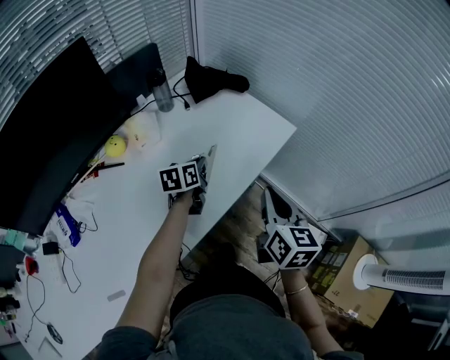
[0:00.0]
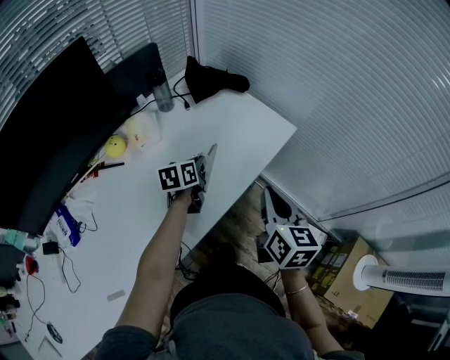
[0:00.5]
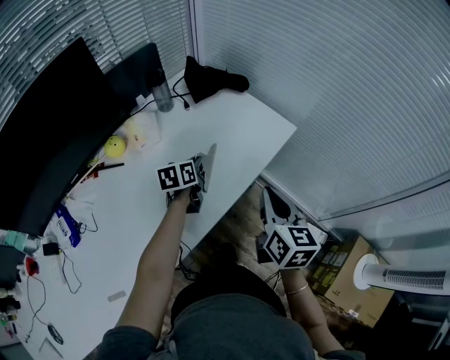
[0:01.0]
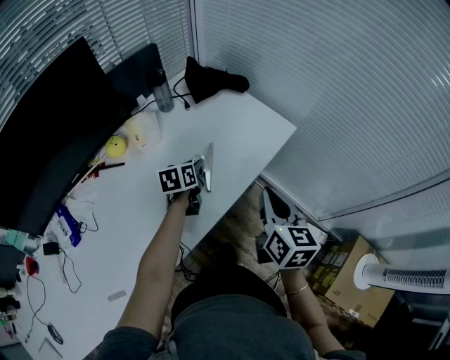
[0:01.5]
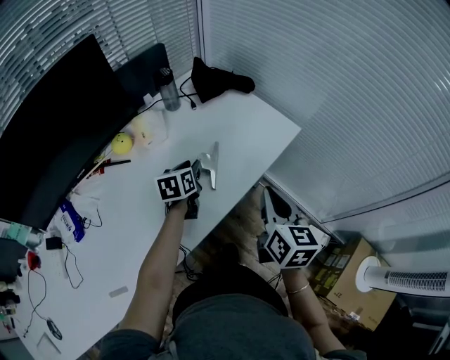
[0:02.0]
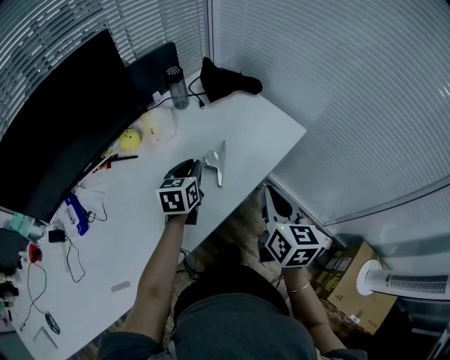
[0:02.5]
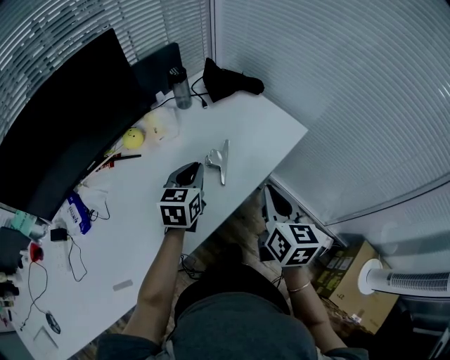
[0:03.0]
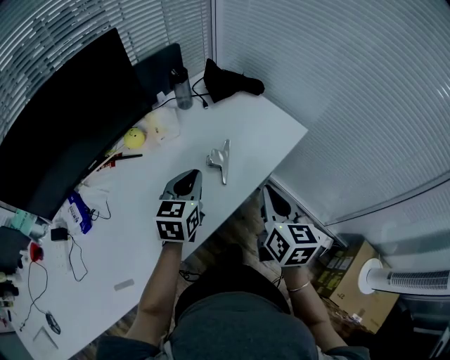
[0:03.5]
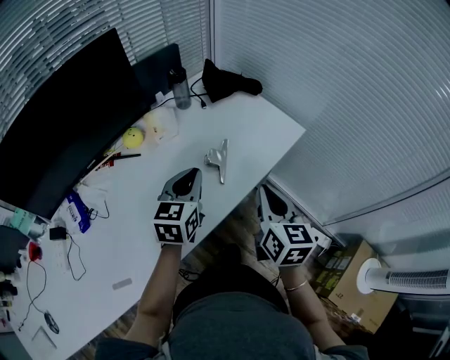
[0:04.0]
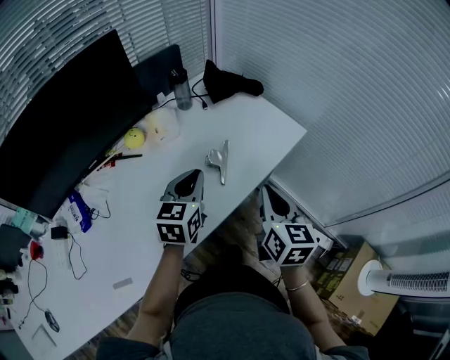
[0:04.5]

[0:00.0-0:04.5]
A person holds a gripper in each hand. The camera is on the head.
0:00.0 to 0:02.0: The left gripper shifts by some 5 cm, and opens.
0:02.0 to 0:04.5: The left gripper heads upward and backward, covering some 15 cm, swivels approximately 20 degrees, and closes.

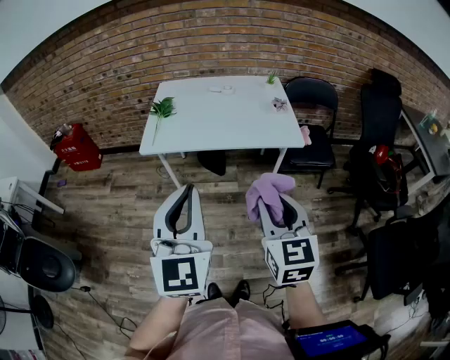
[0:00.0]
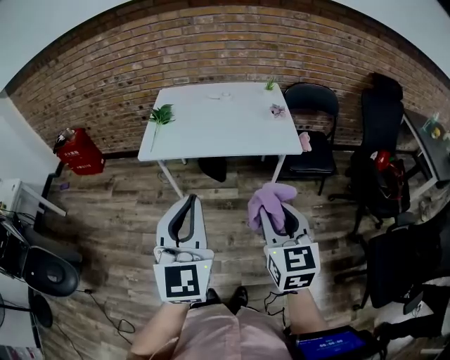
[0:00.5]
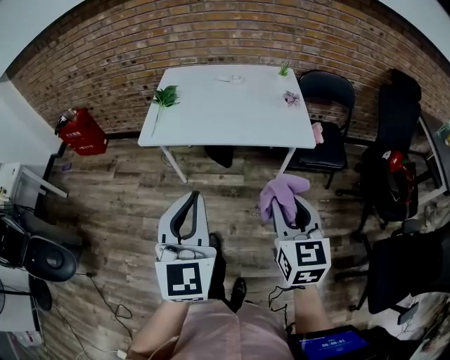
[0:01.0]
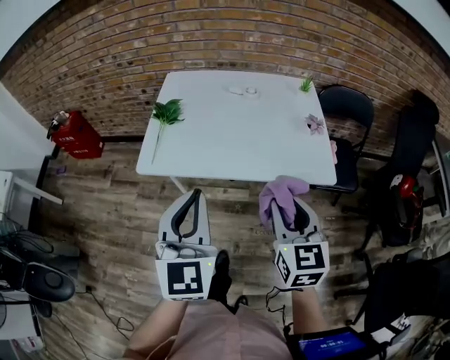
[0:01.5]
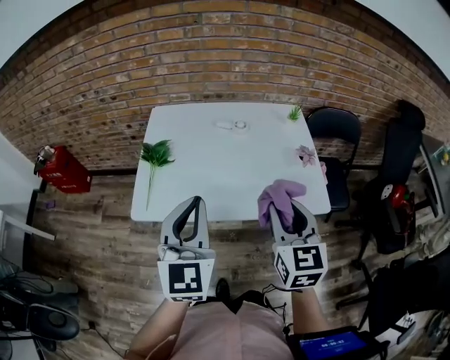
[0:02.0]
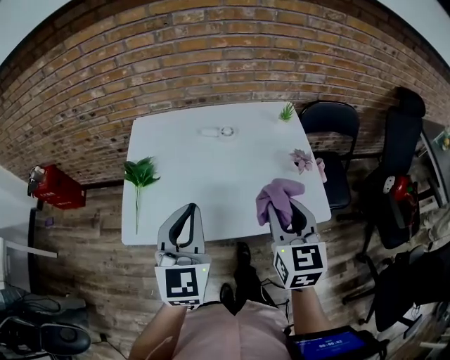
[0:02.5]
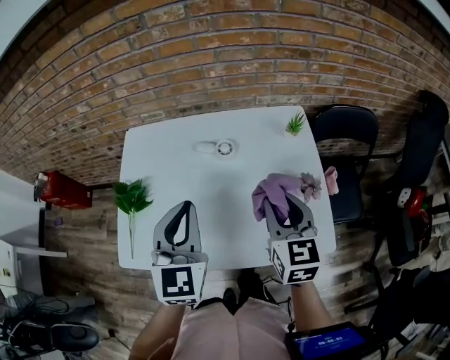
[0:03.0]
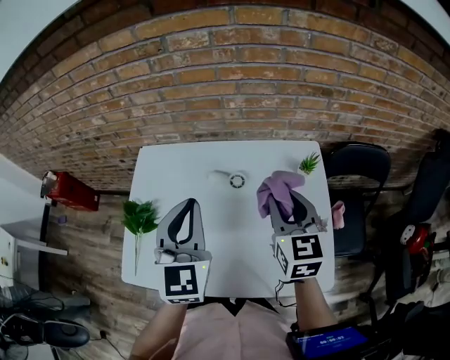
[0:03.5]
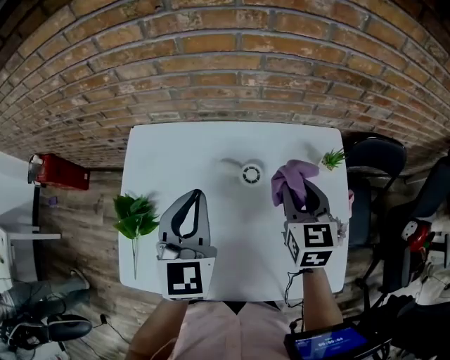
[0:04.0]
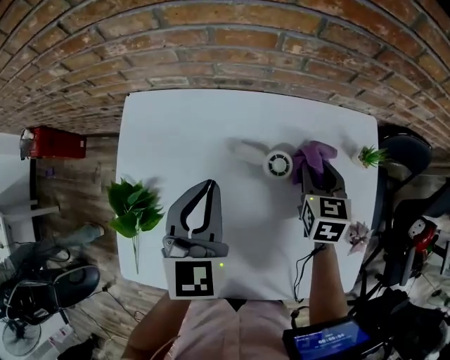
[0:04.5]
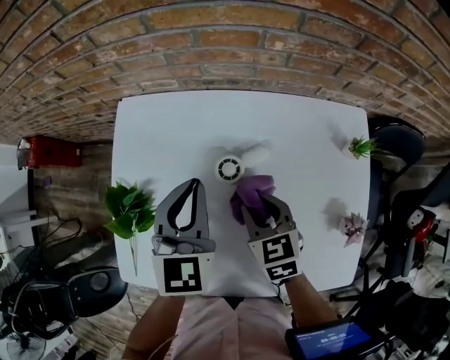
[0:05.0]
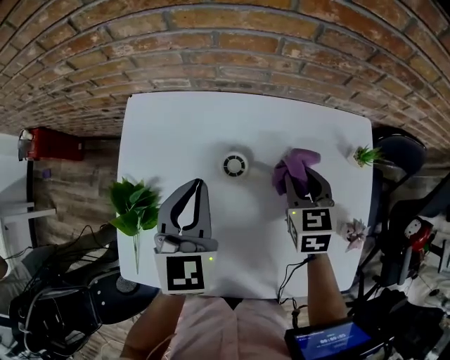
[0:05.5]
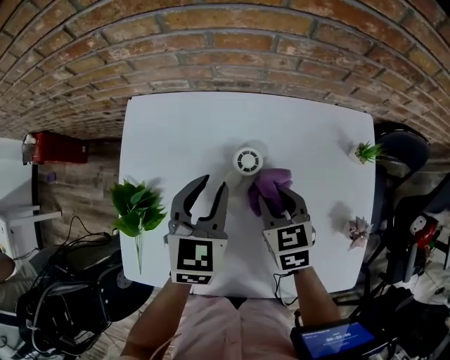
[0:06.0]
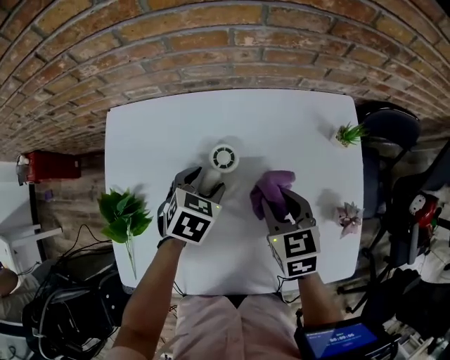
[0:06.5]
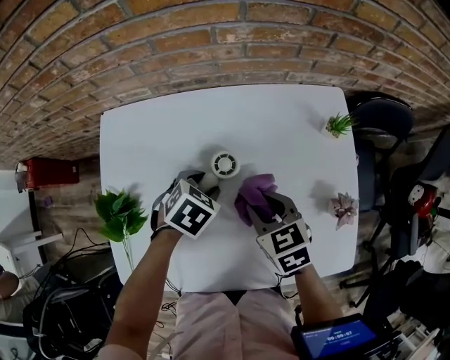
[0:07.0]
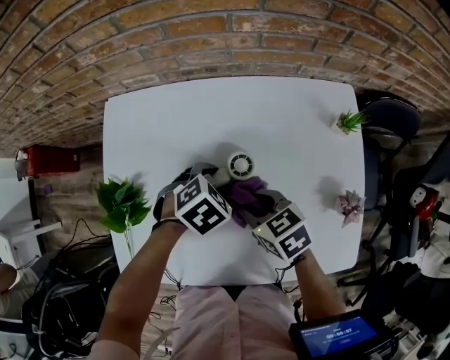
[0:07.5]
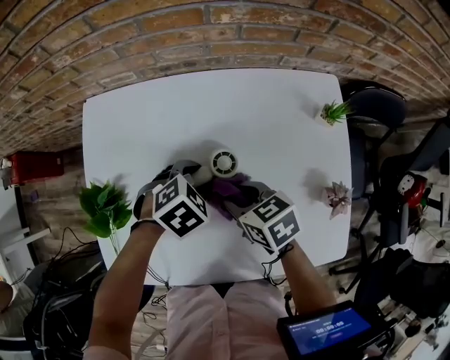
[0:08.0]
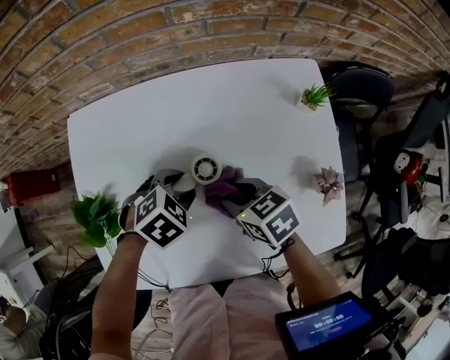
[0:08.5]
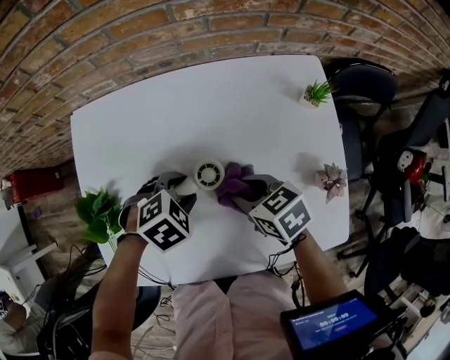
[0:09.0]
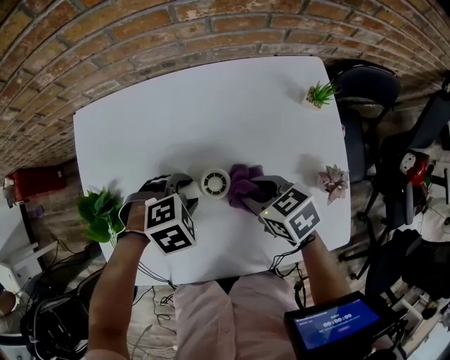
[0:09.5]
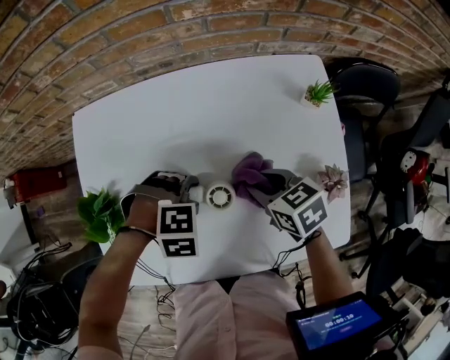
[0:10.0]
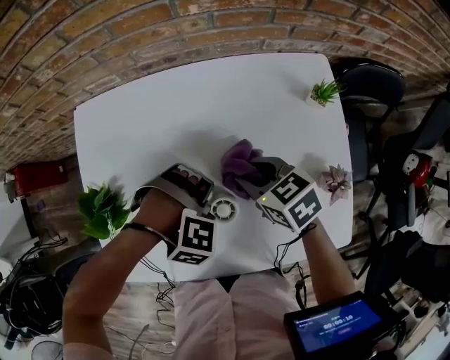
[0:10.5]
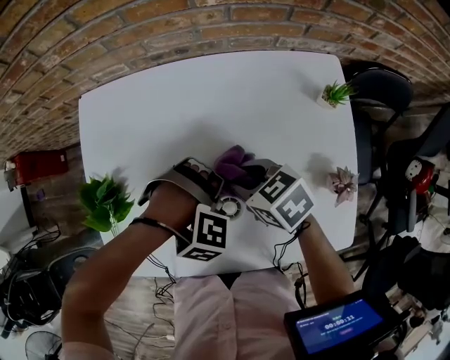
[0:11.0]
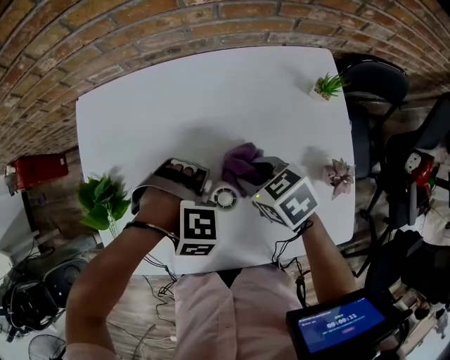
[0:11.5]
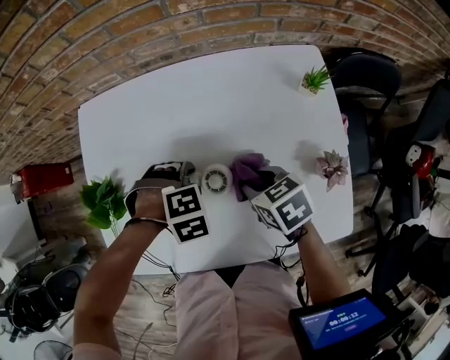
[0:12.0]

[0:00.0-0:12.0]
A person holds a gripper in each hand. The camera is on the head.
0:00.0 to 0:02.0: The two grippers go approximately 30 cm forward.
0:02.0 to 0:04.0: The two grippers go about 35 cm forward.
0:04.0 to 0:06.0: The right gripper swings left and right, some 15 cm each way, with 2 reversals, and turns by some 20 degrees; the left gripper travels downward by some 15 cm, and changes its angle by approximately 20 degrees.
0:06.0 to 0:08.0: The left gripper travels downward and to the right by about 15 cm, and tips its fingers downward by some 30 degrees; the right gripper heads backward, covering about 5 cm, and rotates some 30 degrees.
0:08.0 to 0:10.0: The left gripper moves about 5 cm, and twists roughly 40 degrees clockwise, seen from behind. Meanwhile the right gripper ends up some 10 cm from where it was.

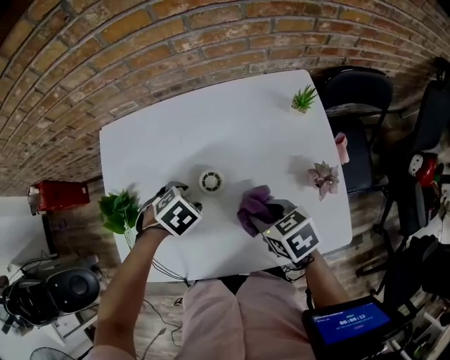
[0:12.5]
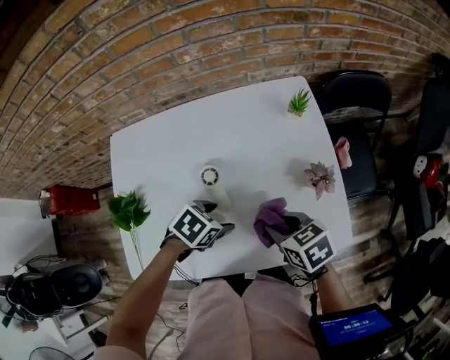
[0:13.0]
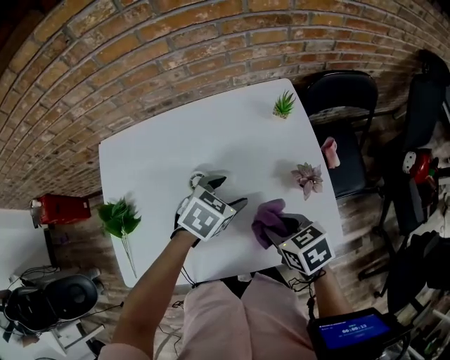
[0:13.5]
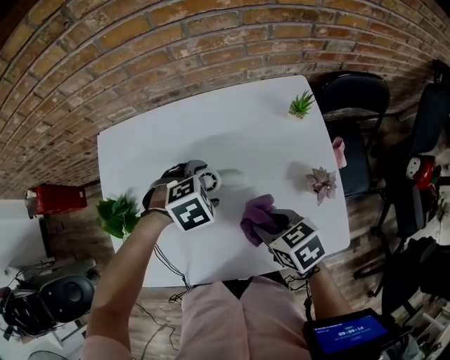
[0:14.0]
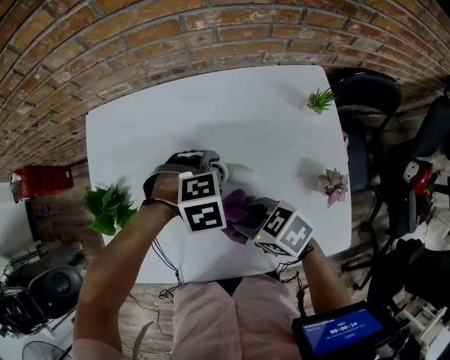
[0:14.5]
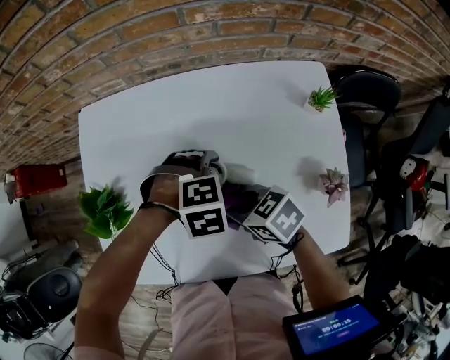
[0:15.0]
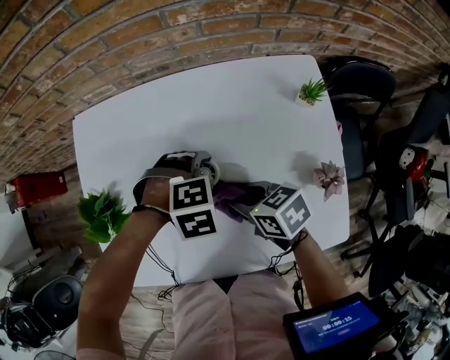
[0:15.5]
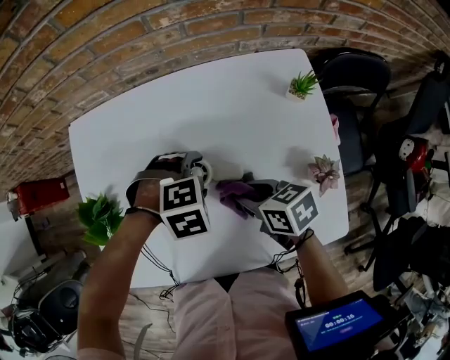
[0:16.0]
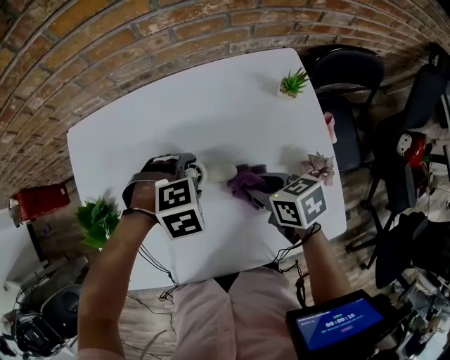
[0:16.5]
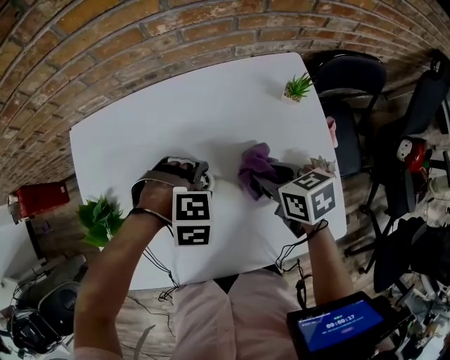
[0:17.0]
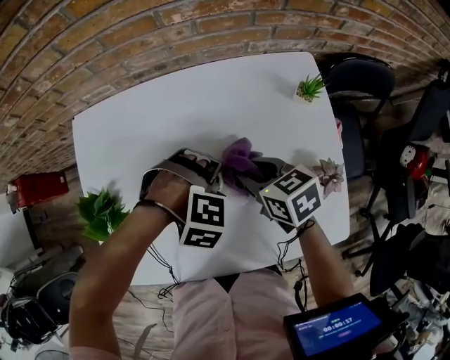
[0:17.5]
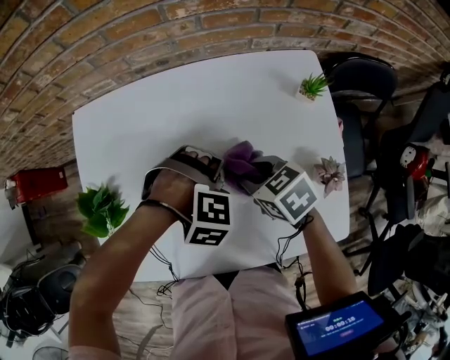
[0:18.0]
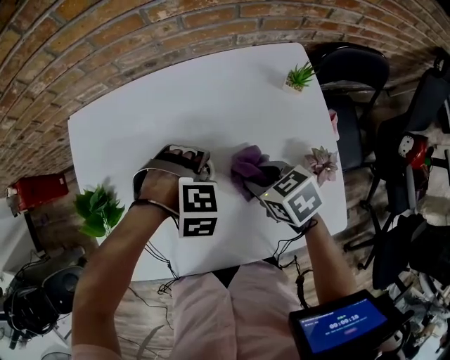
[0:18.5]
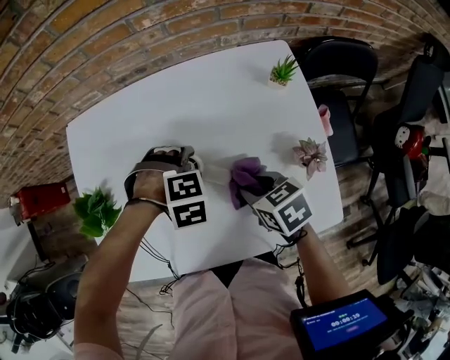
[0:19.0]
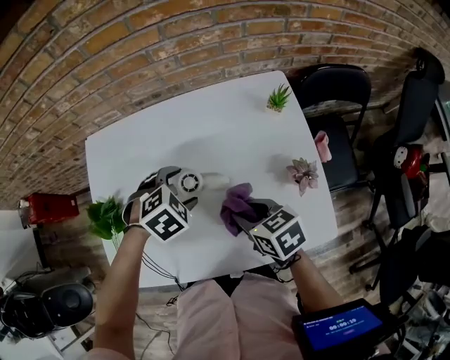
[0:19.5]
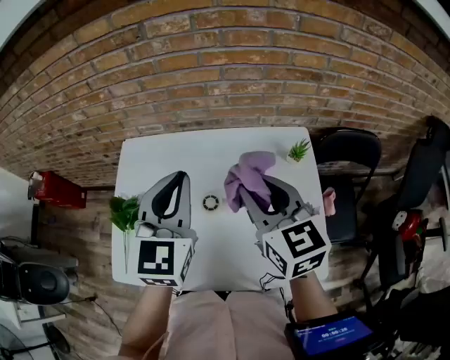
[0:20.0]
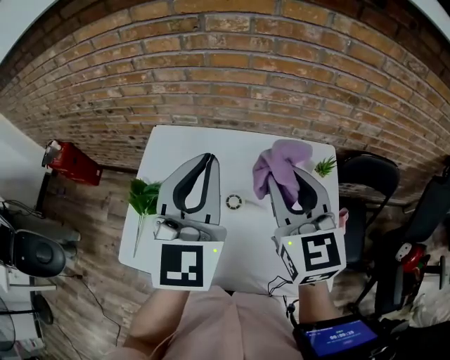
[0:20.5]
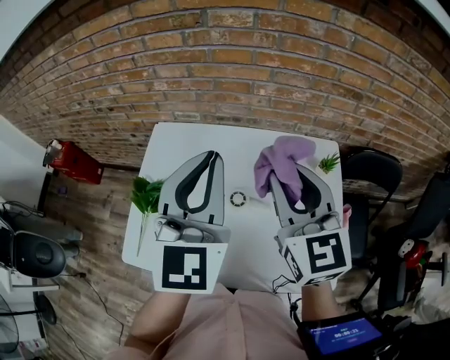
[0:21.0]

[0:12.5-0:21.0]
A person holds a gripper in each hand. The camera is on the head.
0:12.5 to 0:14.5: The left gripper swivels approximately 30 degrees. The right gripper changes place by some 5 cm, and turns by about 20 degrees.
0:14.5 to 0:16.5: The right gripper shifts by approximately 10 cm, and changes its angle by some 30 degrees.
0:19.0 to 0:21.0: Both grippers move upward, some 35 cm. The right gripper angles its fingers upward, by about 40 degrees. Meanwhile the left gripper points its fingers roughly 90 degrees further upward, and closes up.

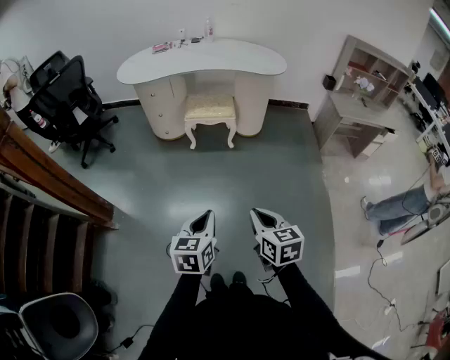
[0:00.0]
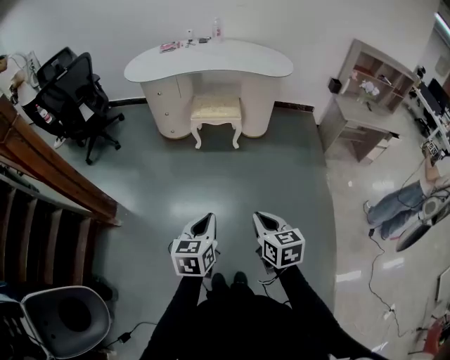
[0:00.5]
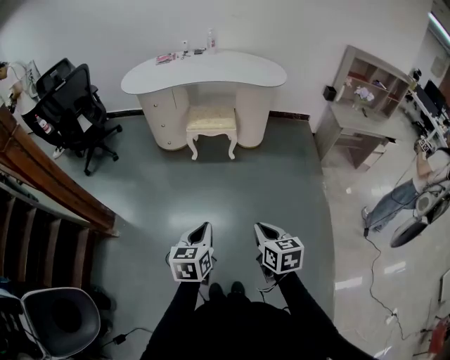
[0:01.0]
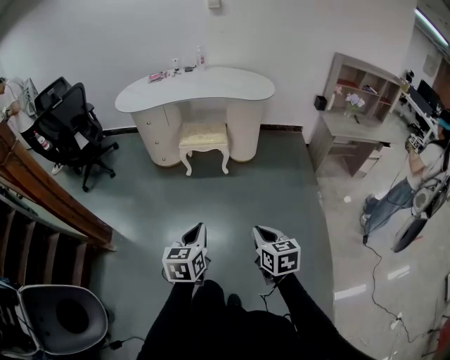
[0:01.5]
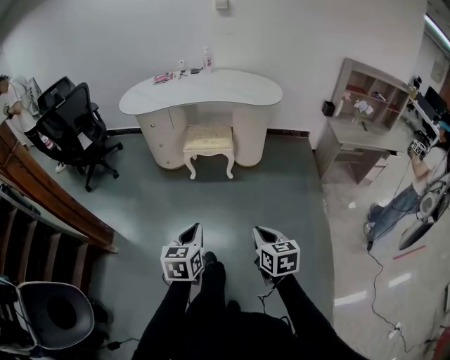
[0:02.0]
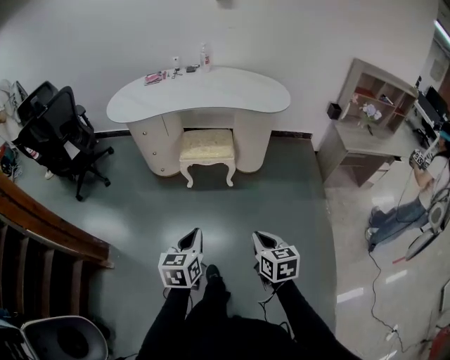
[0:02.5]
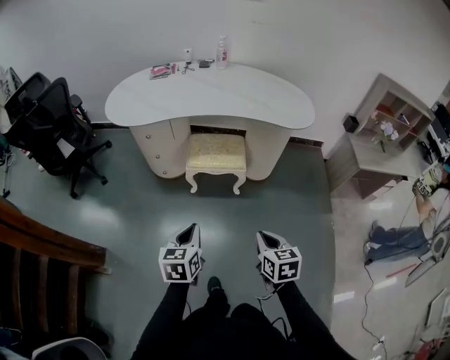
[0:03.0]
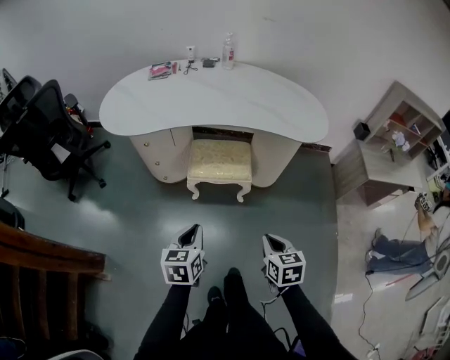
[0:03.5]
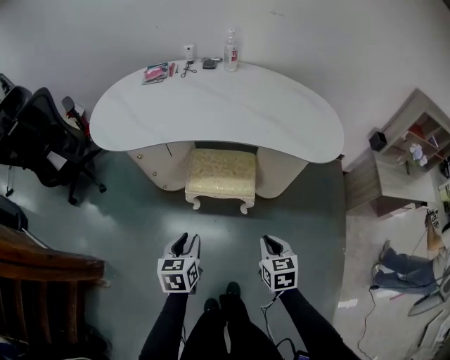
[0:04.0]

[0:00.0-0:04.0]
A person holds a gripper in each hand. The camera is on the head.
0:00.0 to 0:02.0: The left gripper is displaced forward by about 5 cm, while the right gripper goes about 5 cm to the right.
0:02.0 to 0:04.0: Both grippers are carried forward, some 50 cm.
